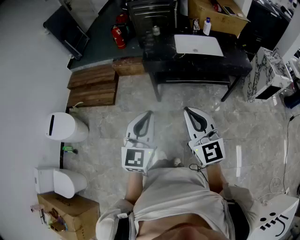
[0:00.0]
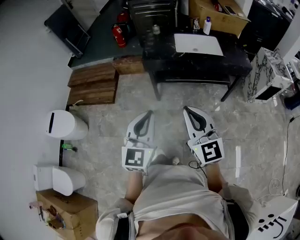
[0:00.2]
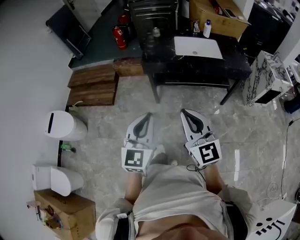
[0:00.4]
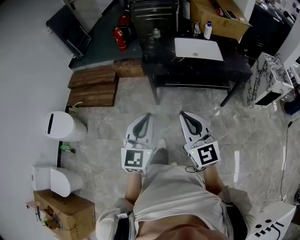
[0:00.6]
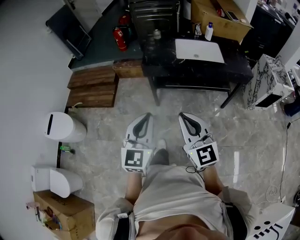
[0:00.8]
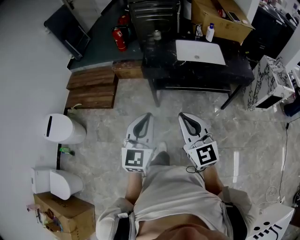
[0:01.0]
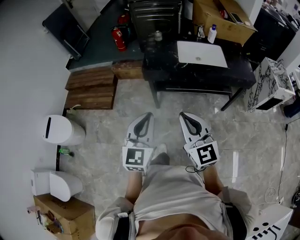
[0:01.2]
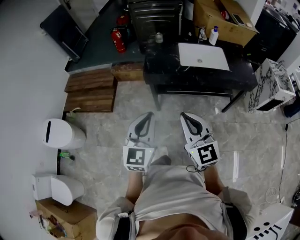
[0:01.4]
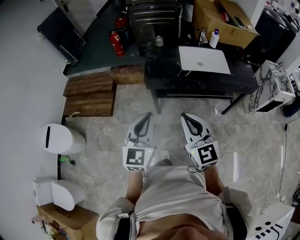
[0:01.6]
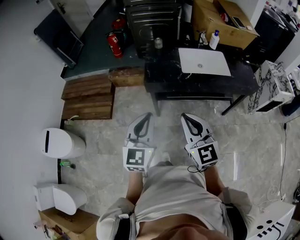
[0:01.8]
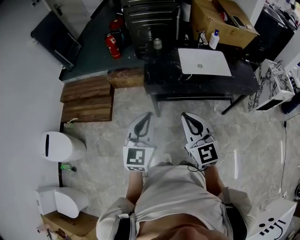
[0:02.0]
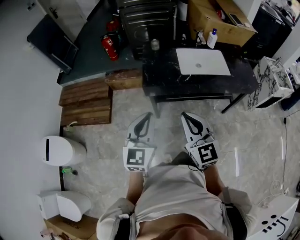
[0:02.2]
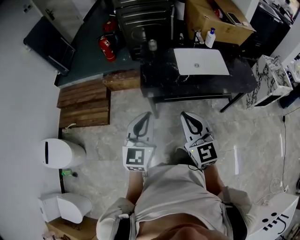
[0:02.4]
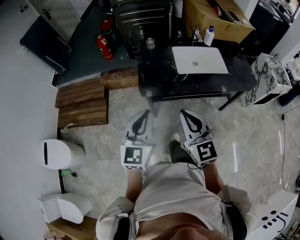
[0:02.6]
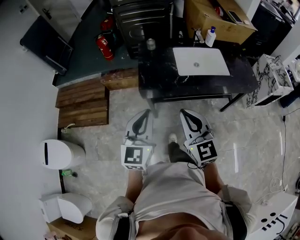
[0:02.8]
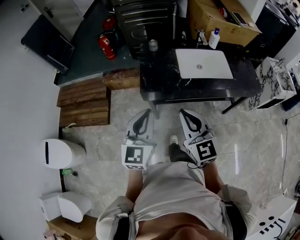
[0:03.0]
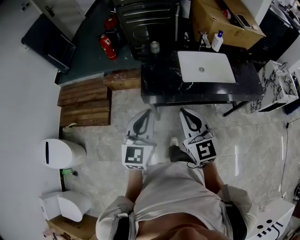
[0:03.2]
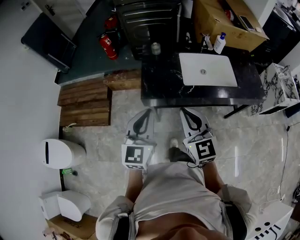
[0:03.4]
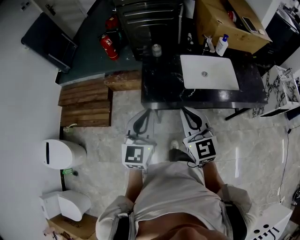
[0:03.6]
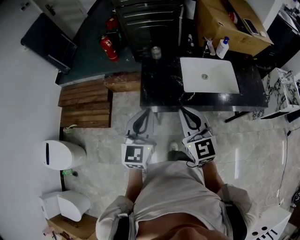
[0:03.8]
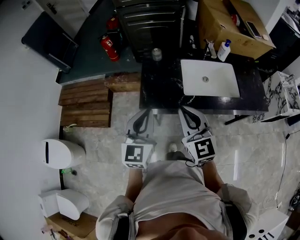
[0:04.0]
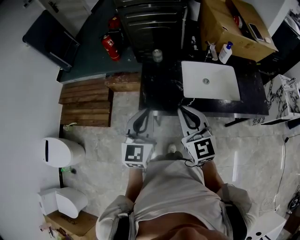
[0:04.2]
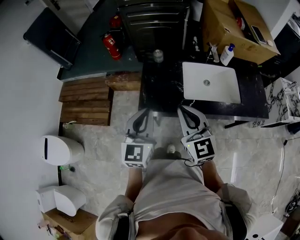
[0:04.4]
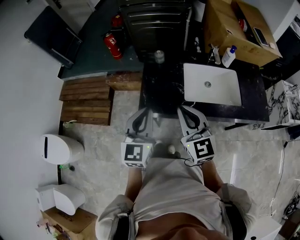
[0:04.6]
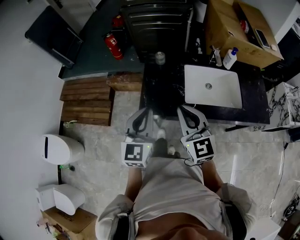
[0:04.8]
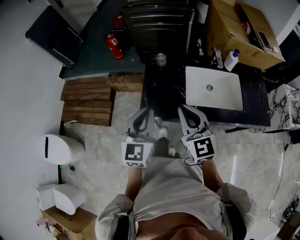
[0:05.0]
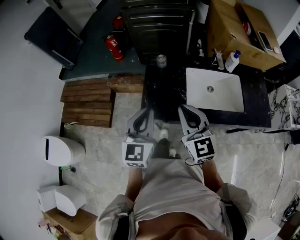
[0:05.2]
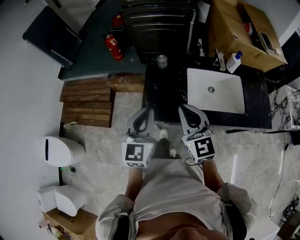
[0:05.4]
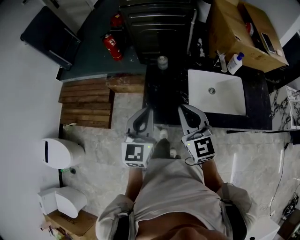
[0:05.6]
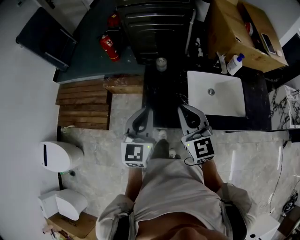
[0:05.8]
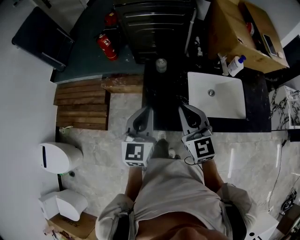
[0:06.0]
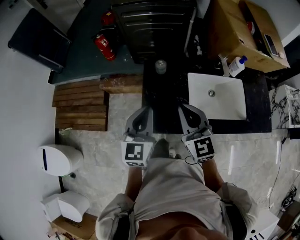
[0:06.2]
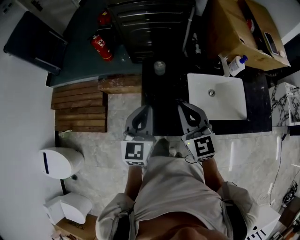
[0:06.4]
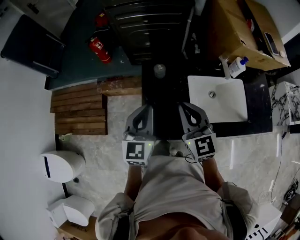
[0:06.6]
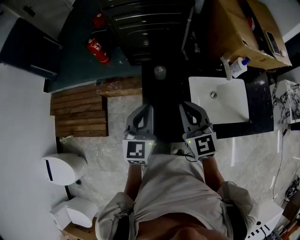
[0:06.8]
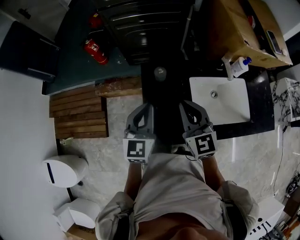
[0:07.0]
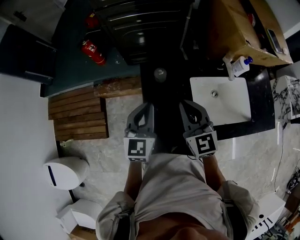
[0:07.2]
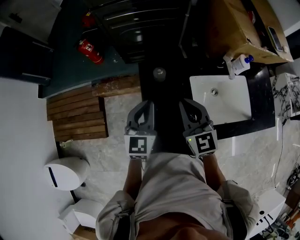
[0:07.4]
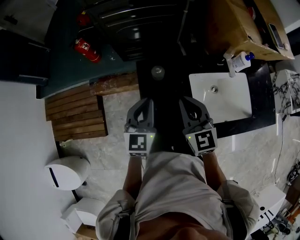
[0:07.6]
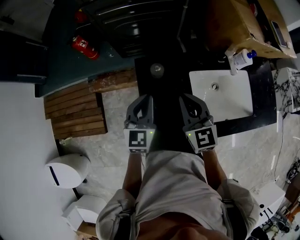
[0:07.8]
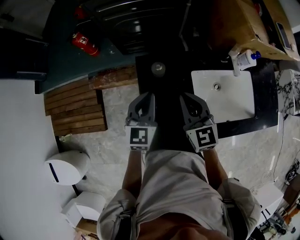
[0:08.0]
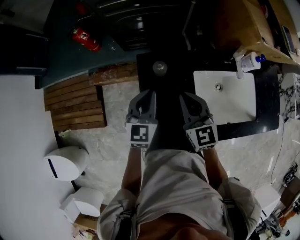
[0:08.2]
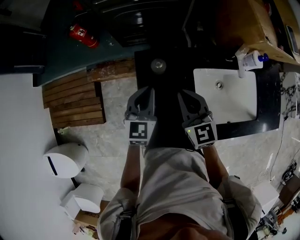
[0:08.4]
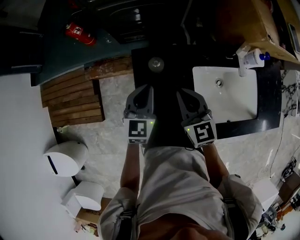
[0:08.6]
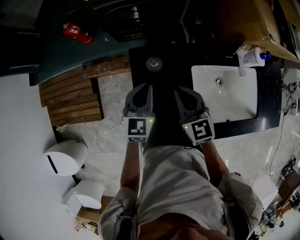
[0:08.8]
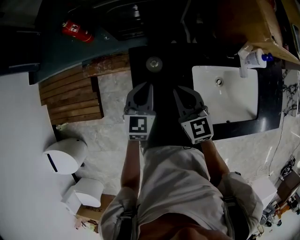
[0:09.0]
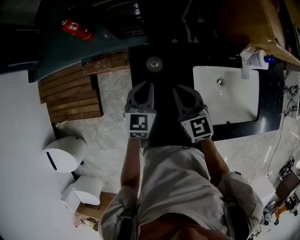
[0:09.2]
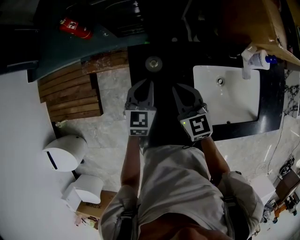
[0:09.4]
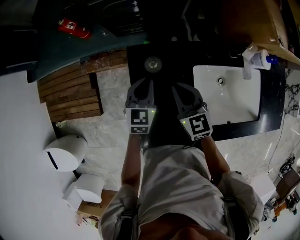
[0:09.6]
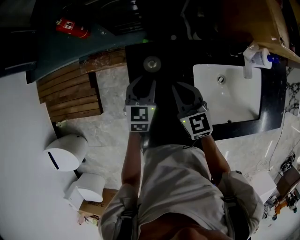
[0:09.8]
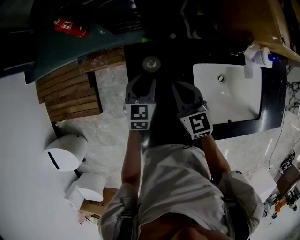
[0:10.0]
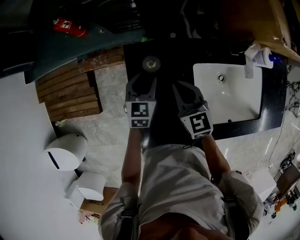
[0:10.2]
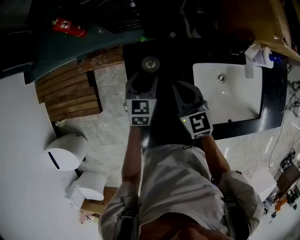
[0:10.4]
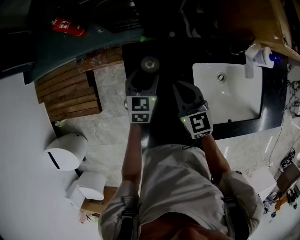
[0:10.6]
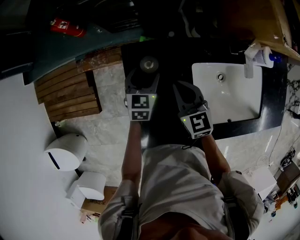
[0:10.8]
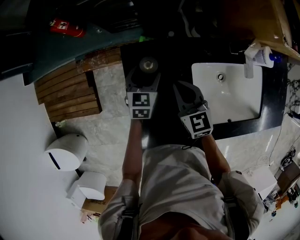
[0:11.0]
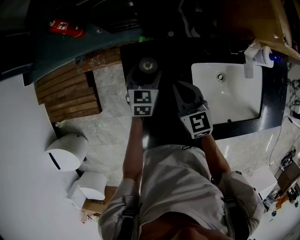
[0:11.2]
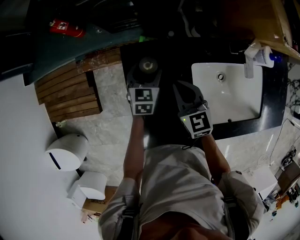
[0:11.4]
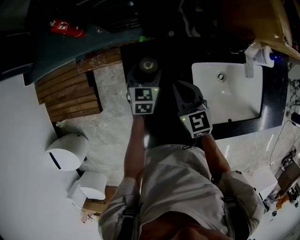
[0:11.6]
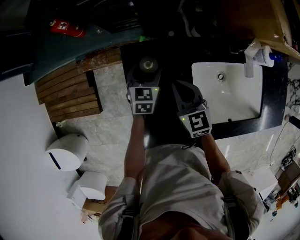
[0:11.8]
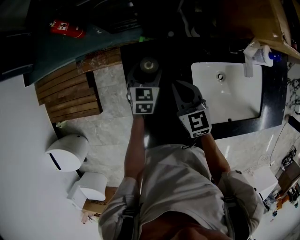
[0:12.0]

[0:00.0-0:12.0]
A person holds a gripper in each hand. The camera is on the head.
0:00.0 to 0:01.6: The grippers both shift forward by some 15 cm.
0:01.6 to 0:03.0: Both grippers travel together forward, about 15 cm.
0:03.0 to 0:04.4: The two grippers go some 15 cm forward.
0:04.4 to 0:06.0: Both grippers move forward, some 15 cm.
0:06.0 to 0:07.6: The right gripper goes roughly 15 cm forward. Meanwhile the left gripper is displaced forward and downward by approximately 20 cm.
0:07.6 to 0:09.0: The grippers both shift downward and forward by approximately 10 cm.
0:09.0 to 0:10.4: The right gripper changes place by roughly 5 cm. Meanwhile the left gripper heads downward, covering about 10 cm, and opens its fingers.
0:10.4 to 0:12.0: There are only small adjustments of the grippers.

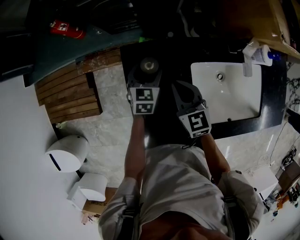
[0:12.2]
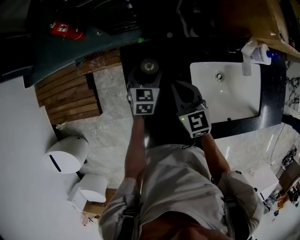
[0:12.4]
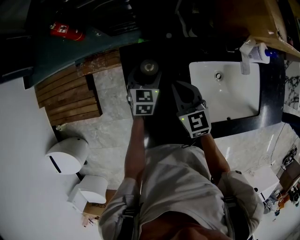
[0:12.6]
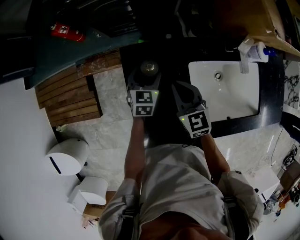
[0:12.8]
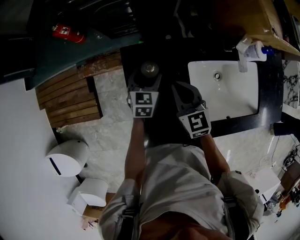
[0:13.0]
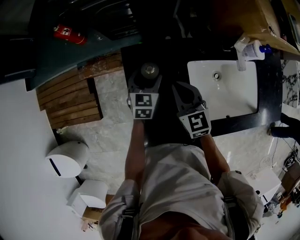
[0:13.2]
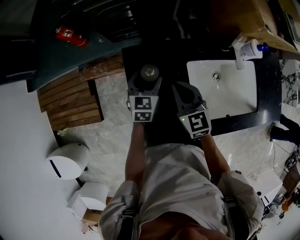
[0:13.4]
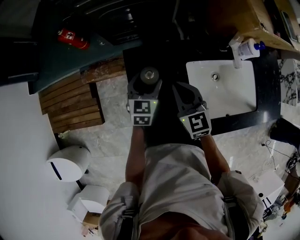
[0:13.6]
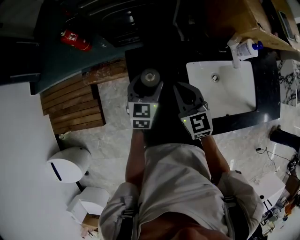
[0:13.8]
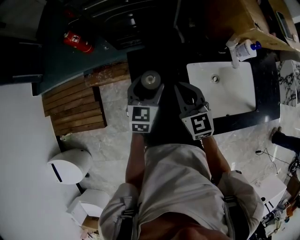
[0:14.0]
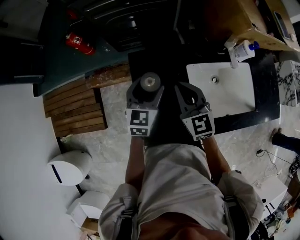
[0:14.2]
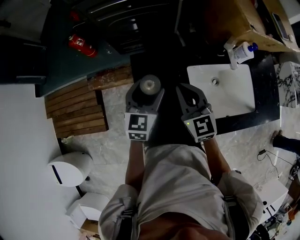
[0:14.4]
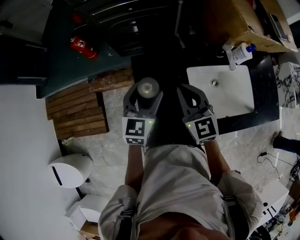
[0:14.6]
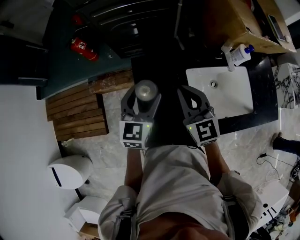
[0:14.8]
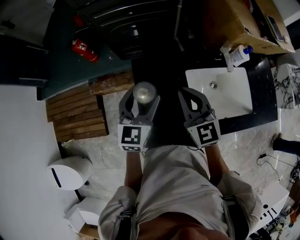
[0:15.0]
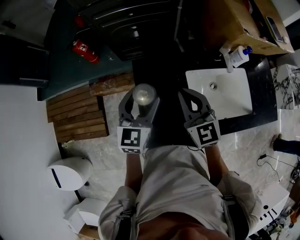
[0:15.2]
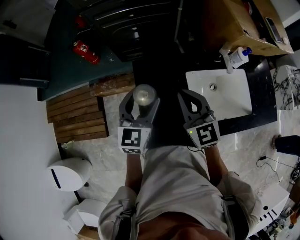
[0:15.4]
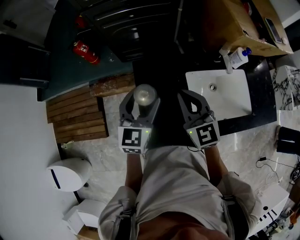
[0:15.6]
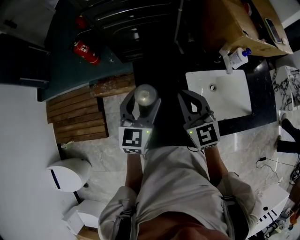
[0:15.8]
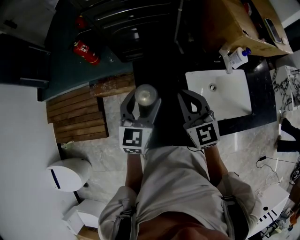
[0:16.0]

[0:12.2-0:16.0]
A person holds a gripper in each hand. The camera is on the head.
0:12.2 to 0:13.4: The left gripper shifts by about 5 cm.
0:13.4 to 0:14.8: The right gripper shifts about 10 cm upward. Meanwhile the left gripper shifts roughly 20 cm upward and backward.
0:14.8 to 0:16.0: There are only small adjustments of the grippers.

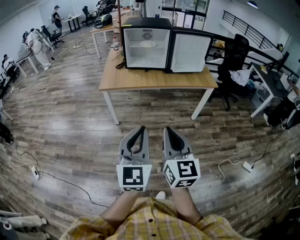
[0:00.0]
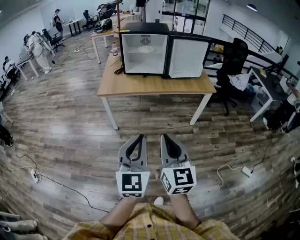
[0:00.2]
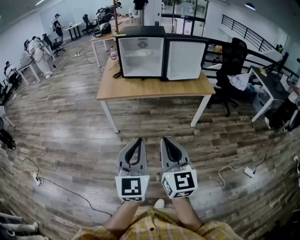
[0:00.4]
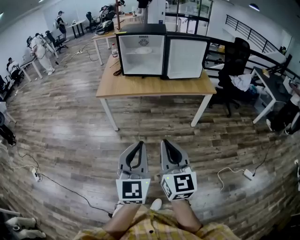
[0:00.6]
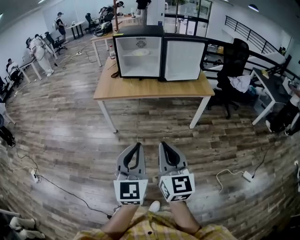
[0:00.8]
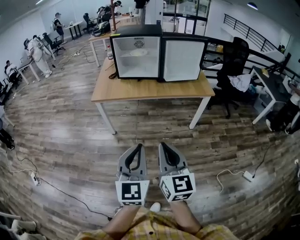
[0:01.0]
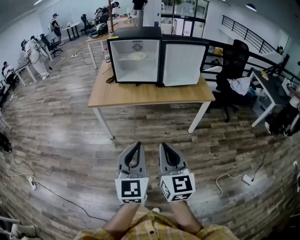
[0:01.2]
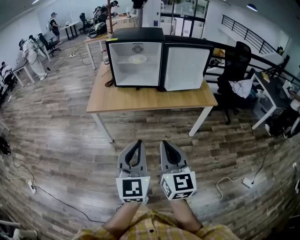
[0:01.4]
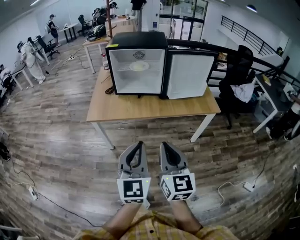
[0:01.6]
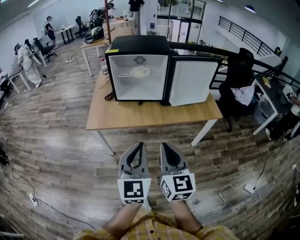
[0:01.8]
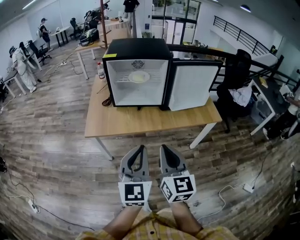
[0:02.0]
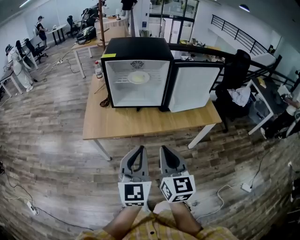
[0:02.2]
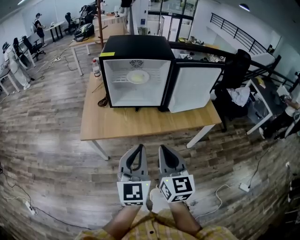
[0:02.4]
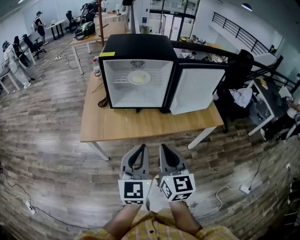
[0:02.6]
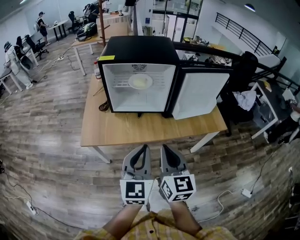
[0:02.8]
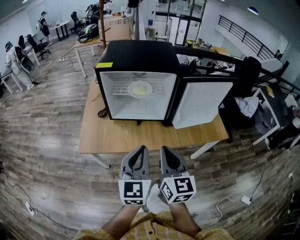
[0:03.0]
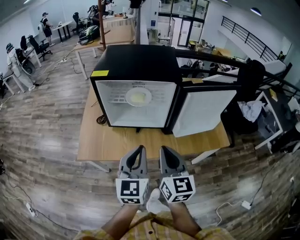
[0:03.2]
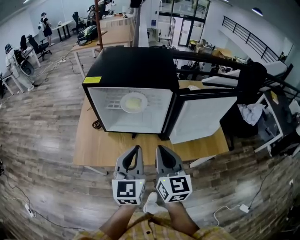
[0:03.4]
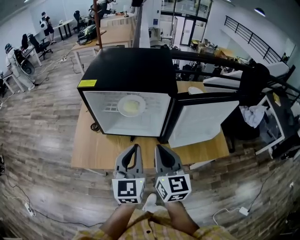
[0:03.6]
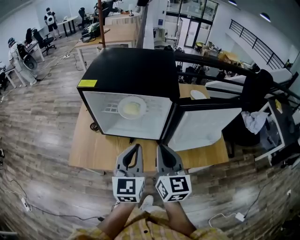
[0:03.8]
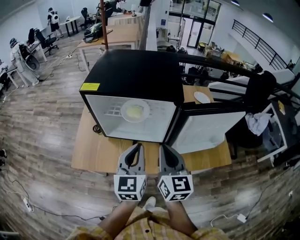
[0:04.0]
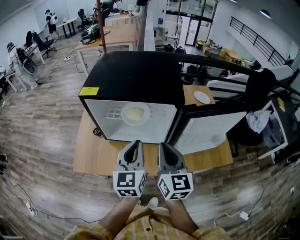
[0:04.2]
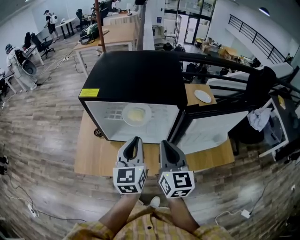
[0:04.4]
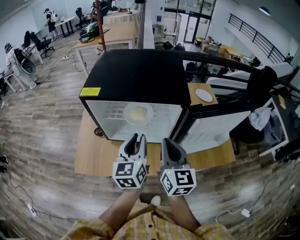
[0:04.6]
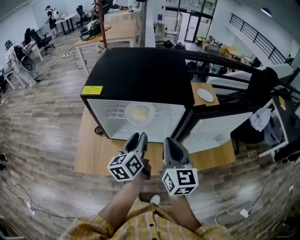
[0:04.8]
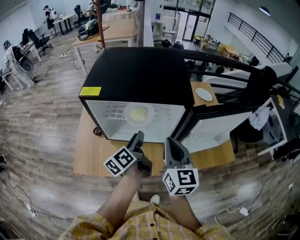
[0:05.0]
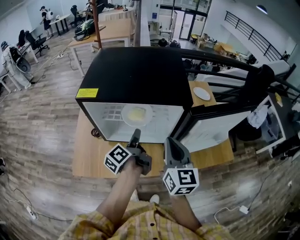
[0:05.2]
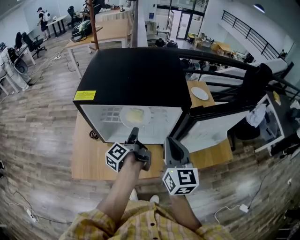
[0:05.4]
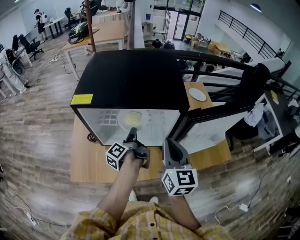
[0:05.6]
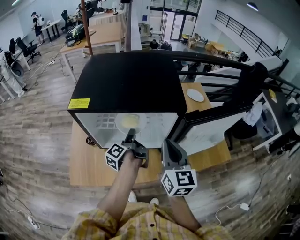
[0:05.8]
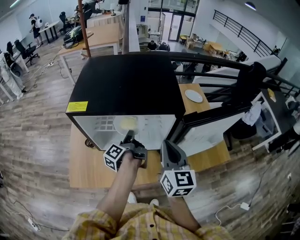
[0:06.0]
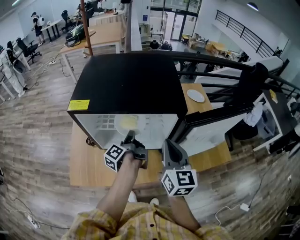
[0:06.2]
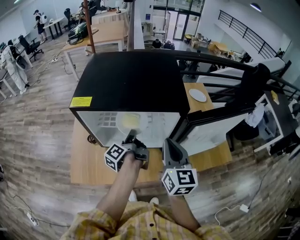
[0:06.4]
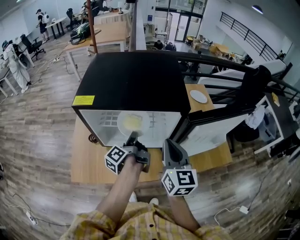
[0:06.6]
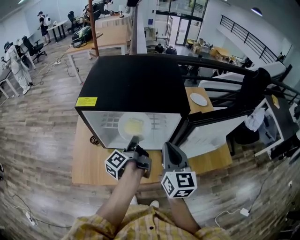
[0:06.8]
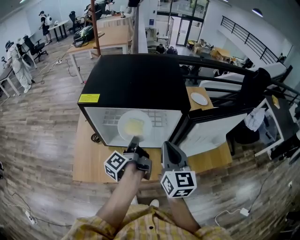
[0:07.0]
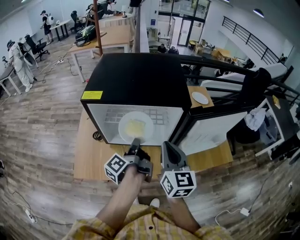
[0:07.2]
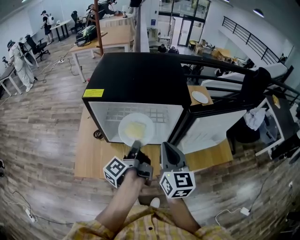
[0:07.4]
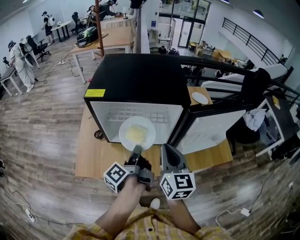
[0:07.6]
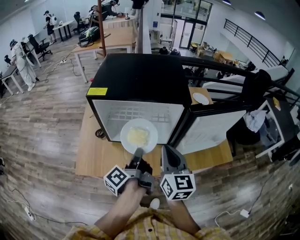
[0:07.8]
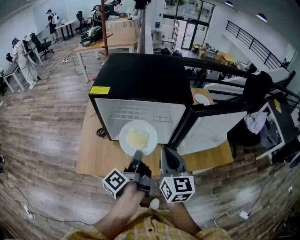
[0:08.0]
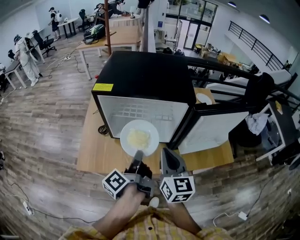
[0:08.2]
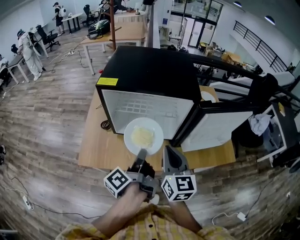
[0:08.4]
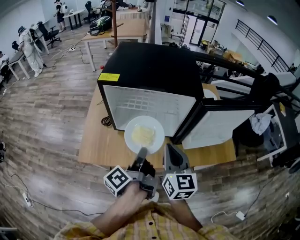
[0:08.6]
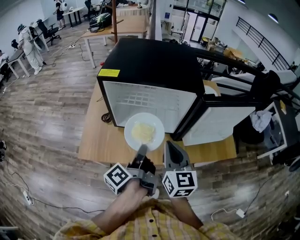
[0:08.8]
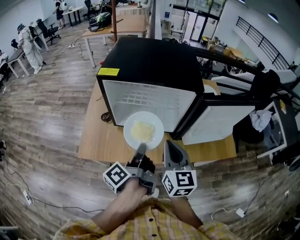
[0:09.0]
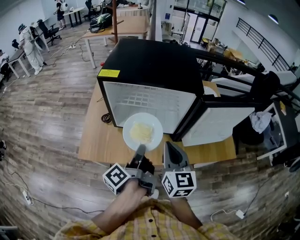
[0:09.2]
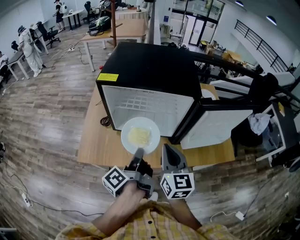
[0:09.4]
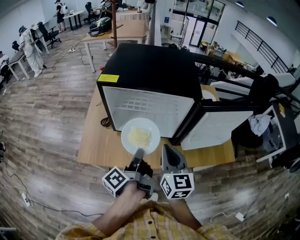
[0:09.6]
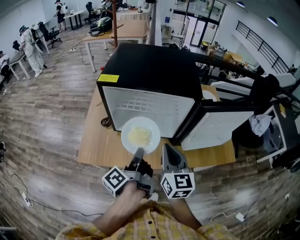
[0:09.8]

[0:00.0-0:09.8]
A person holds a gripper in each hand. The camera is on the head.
0:00.0 to 0:01.4: Both grippers travel together forward and to the right, about 15 cm.
0:01.4 to 0:02.8: The two grippers go approximately 30 cm forward.
0:02.8 to 0:04.2: Both grippers move forward, about 25 cm.
0:04.2 to 0:05.6: The left gripper is displaced downward and forward by roughly 20 cm, rolls counterclockwise, seen from behind, by roughly 90 degrees, and opens.
0:05.6 to 0:07.0: The left gripper goes roughly 5 cm backward, and closes up.
0:07.0 to 0:08.4: The left gripper heads backward, covering roughly 15 cm, while the right gripper heads backward, covering about 5 cm.
0:08.4 to 0:09.8: The grippers stay close to where they were, moving slightly.
